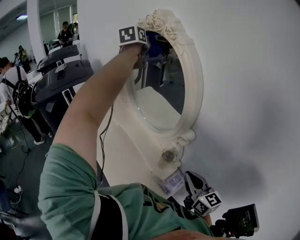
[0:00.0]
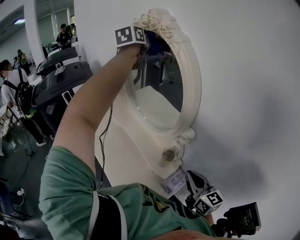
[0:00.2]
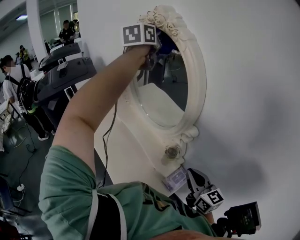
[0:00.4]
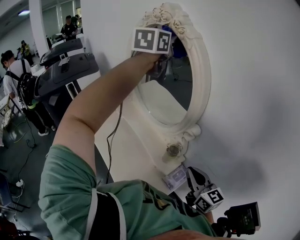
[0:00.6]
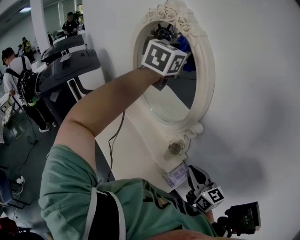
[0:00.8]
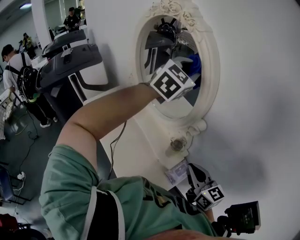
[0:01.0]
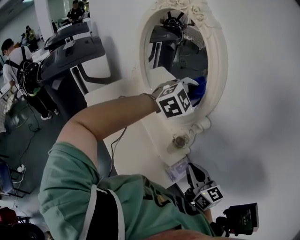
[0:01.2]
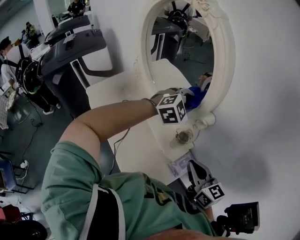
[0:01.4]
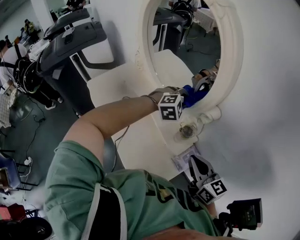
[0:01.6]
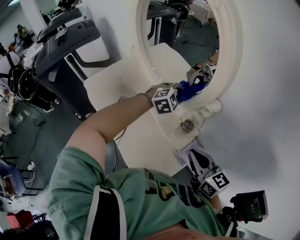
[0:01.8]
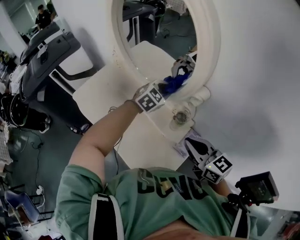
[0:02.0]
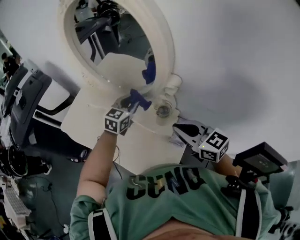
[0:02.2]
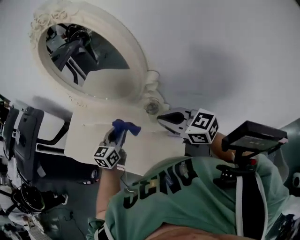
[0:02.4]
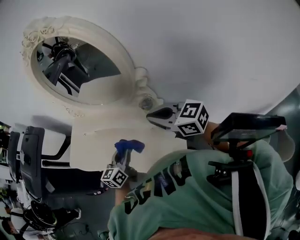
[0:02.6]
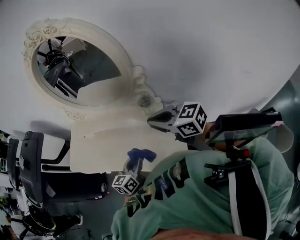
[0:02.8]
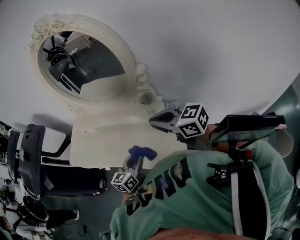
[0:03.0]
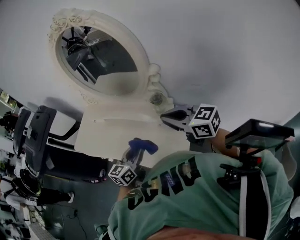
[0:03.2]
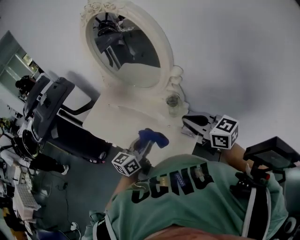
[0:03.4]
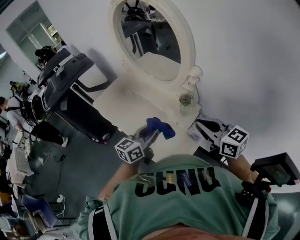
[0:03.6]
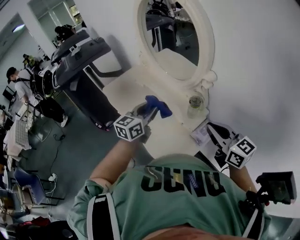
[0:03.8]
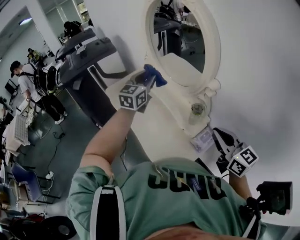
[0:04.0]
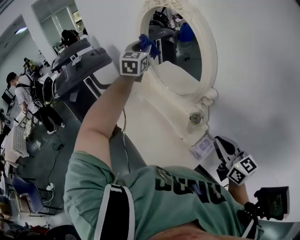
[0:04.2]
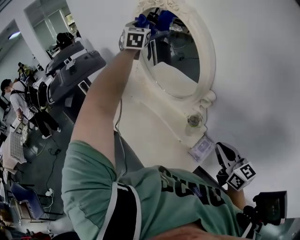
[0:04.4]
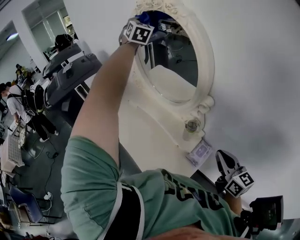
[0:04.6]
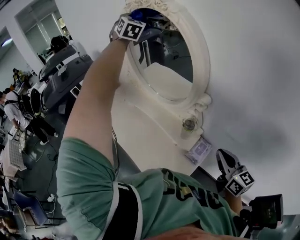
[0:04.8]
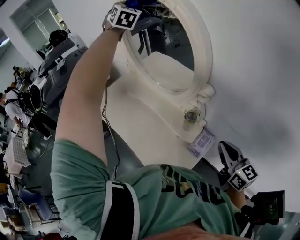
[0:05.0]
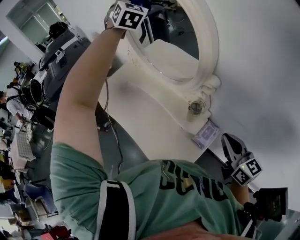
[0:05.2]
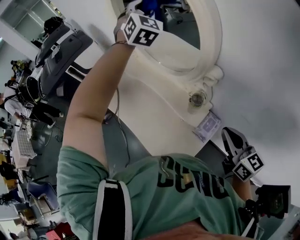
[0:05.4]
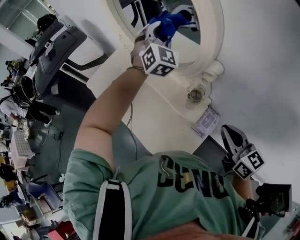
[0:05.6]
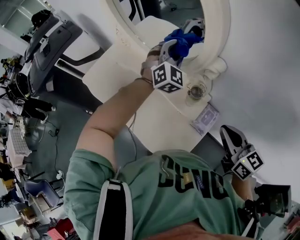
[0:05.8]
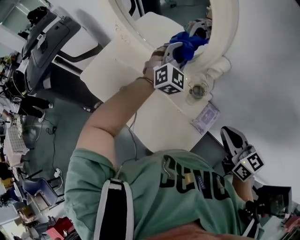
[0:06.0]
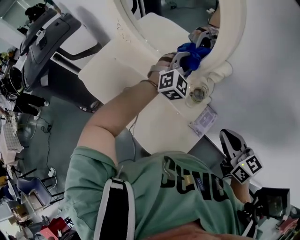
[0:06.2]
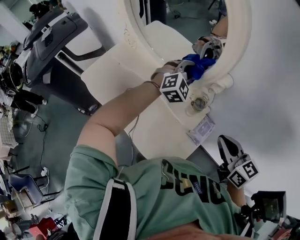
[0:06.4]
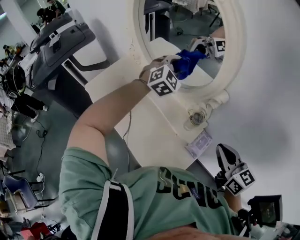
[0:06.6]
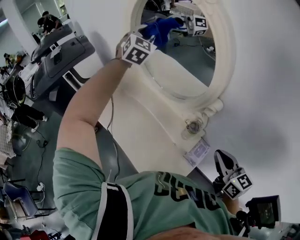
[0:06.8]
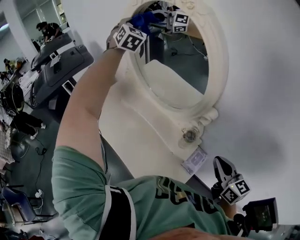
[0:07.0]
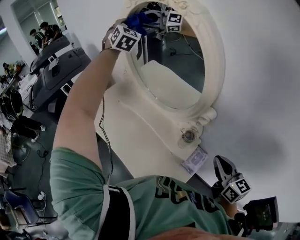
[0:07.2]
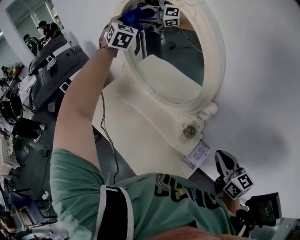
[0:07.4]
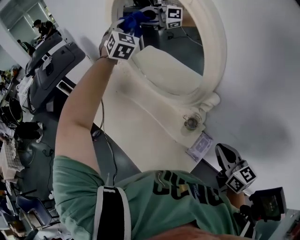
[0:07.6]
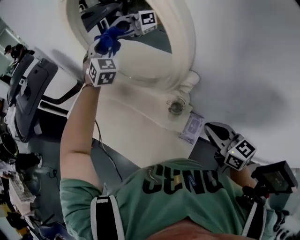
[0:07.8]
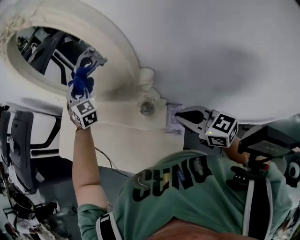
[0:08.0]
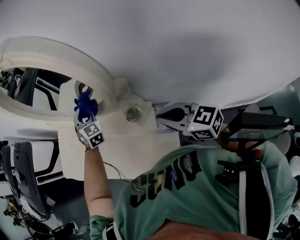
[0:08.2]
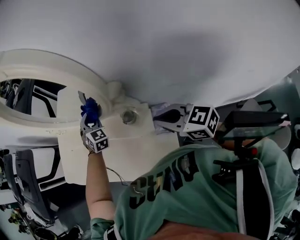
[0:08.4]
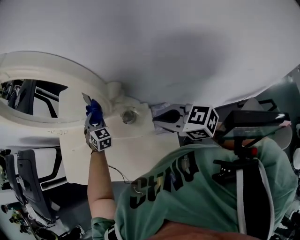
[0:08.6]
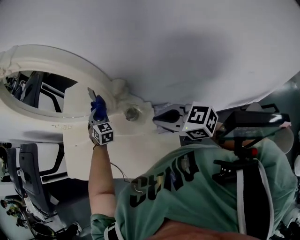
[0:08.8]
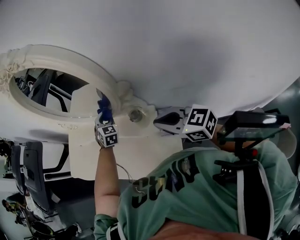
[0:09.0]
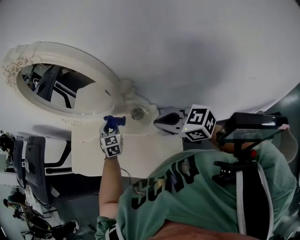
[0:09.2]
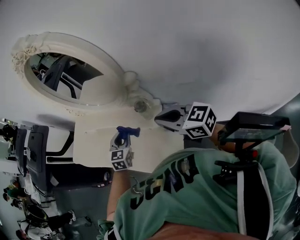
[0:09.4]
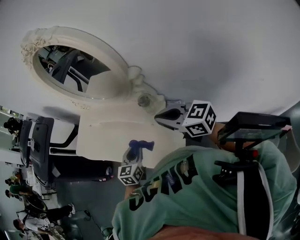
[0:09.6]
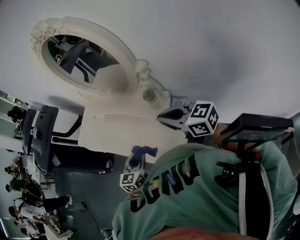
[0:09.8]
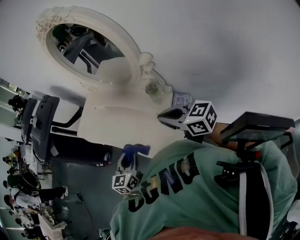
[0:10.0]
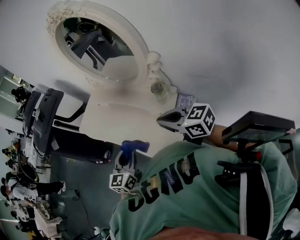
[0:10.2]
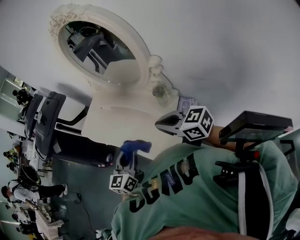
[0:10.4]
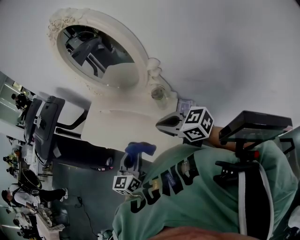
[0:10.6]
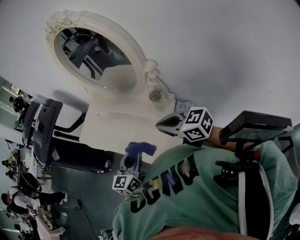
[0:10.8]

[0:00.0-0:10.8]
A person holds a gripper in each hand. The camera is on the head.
0:00.0 to 0:01.6: The left gripper moves downward, backward and to the right, roughly 50 cm, and rotates around the line of its fingers by about 70 degrees, clockwise from behind, while the right gripper moves about 5 cm.
0:01.6 to 0:03.0: The right gripper travels to the left, backward and upward by roughly 15 cm. The left gripper moves backward and to the left, about 35 cm, and rotates around the line of its fingers by some 60 degrees, counterclockwise from behind.
0:03.0 to 0:04.6: The left gripper shifts by about 60 cm, and turns by roughly 80 degrees; the right gripper ends up approximately 15 cm from where it was.
0:04.6 to 0:06.2: The right gripper goes roughly 5 cm downward. The left gripper shifts some 50 cm downward, backward and to the right, and swivels some 40 degrees.
0:06.2 to 0:07.8: The left gripper heads forward, to the left and upward, covering roughly 30 cm, and changes its angle by about 30 degrees.
0:07.8 to 0:09.2: The left gripper goes about 30 cm downward and backward, and turns by approximately 30 degrees; the right gripper is displaced to the left by some 5 cm.
0:09.2 to 0:10.8: The right gripper moves to the left, approximately 10 cm. Meanwhile the left gripper shifts roughly 30 cm backward and to the left, and changes its angle by about 40 degrees.

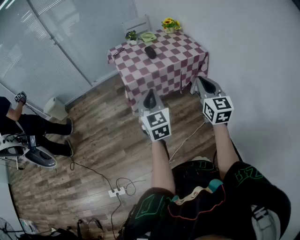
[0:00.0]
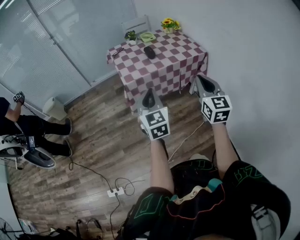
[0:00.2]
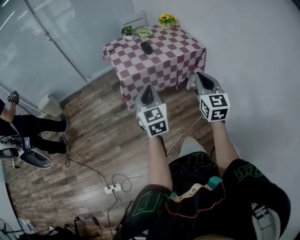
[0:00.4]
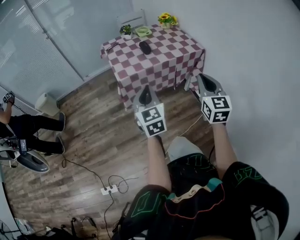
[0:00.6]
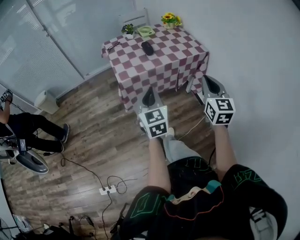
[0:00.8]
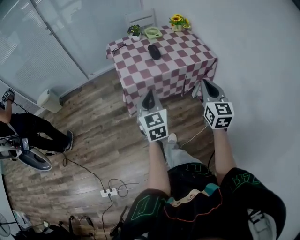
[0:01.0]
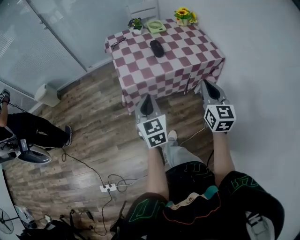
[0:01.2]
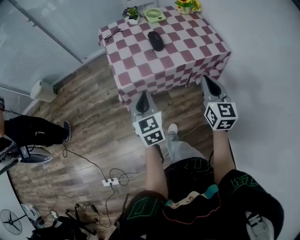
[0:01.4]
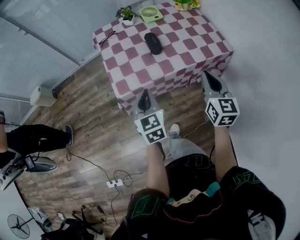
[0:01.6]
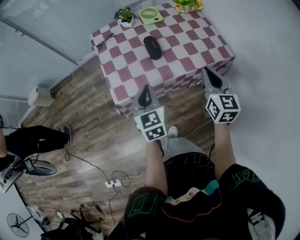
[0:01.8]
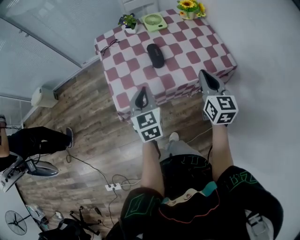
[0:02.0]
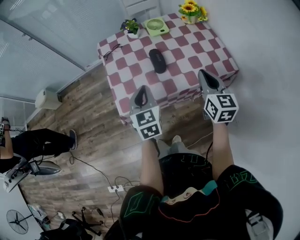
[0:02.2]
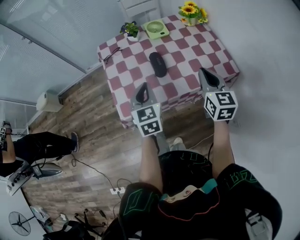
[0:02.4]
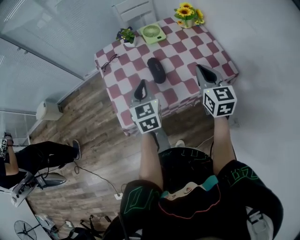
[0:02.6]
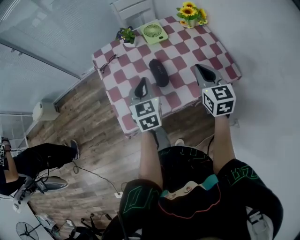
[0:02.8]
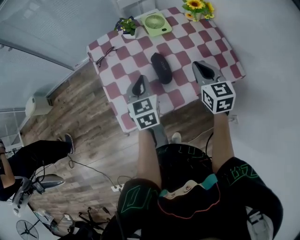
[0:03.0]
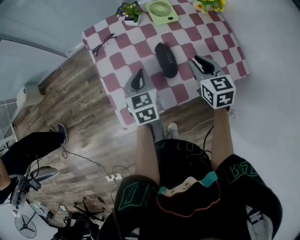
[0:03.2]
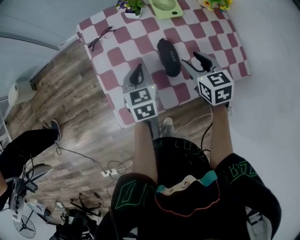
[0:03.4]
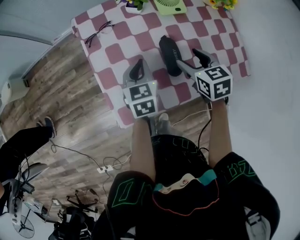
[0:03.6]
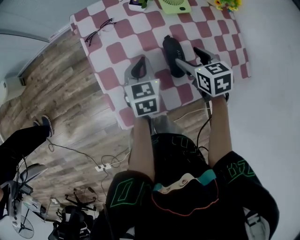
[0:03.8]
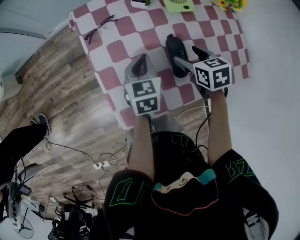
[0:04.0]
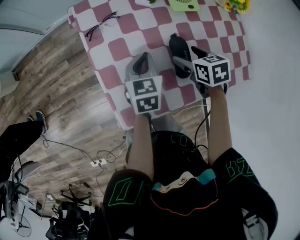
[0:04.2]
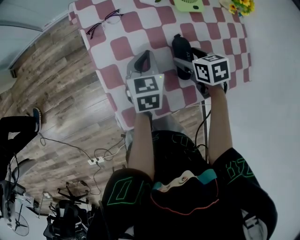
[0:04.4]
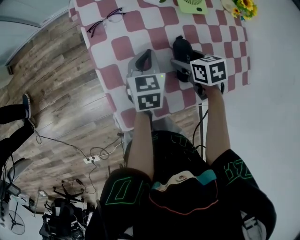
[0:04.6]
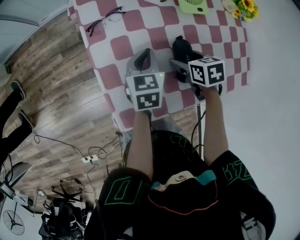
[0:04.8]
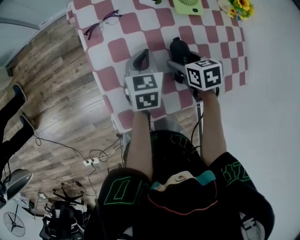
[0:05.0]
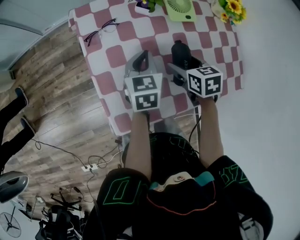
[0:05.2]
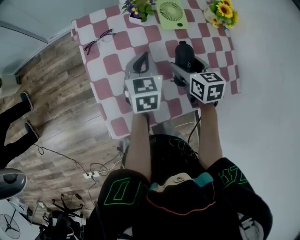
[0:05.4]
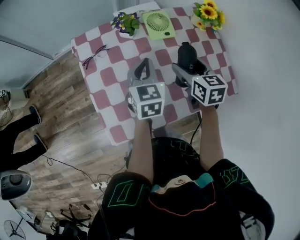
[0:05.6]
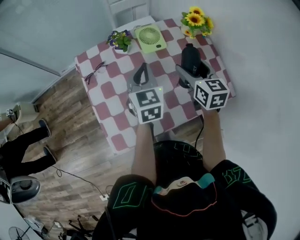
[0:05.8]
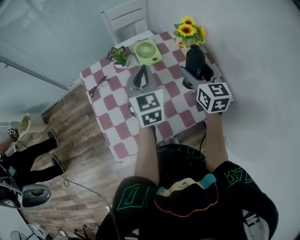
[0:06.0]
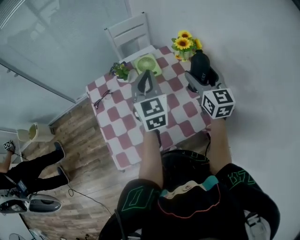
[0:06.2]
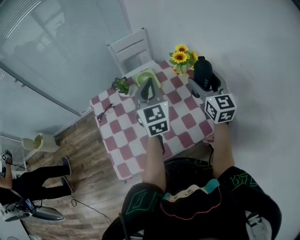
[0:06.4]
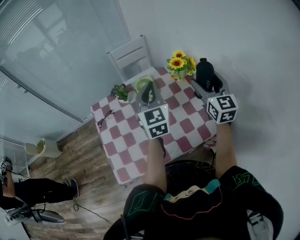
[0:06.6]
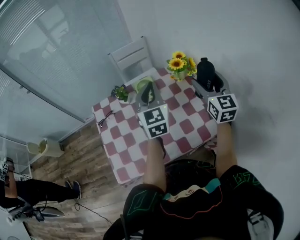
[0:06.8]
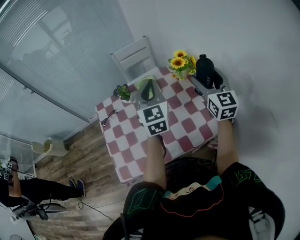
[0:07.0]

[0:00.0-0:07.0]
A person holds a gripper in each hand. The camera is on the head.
0:00.0 to 0:01.4: The right gripper shifts approximately 25 cm forward; the left gripper is displaced forward and downward by approximately 25 cm.
0:01.4 to 0:02.8: Both grippers travel together forward, about 30 cm.
0:02.8 to 0:04.2: The right gripper goes some 25 cm downward, forward and to the left, points its fingers some 40 degrees further downward, and opens up. The left gripper goes approximately 20 cm downward and forward, and changes its angle by some 20 degrees.
0:04.2 to 0:05.6: The grippers both shift upward and to the right by roughly 15 cm. The right gripper changes its angle by about 30 degrees.
0:05.6 to 0:07.0: The left gripper heads upward and to the right, covering approximately 25 cm, and rotates approximately 30 degrees. The right gripper is displaced to the right and upward by some 30 cm, and tips its fingers upward by roughly 40 degrees.

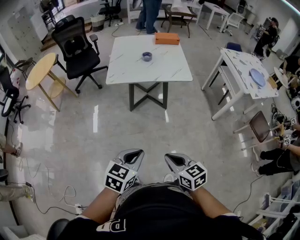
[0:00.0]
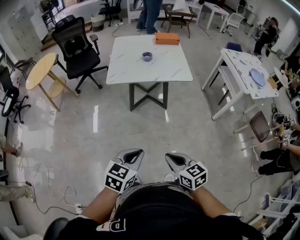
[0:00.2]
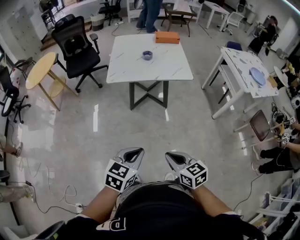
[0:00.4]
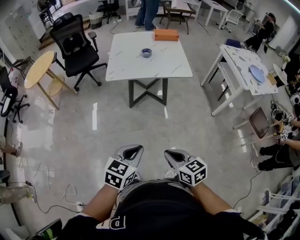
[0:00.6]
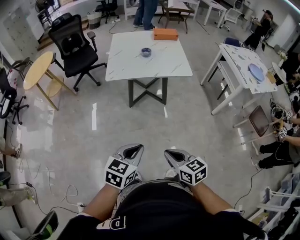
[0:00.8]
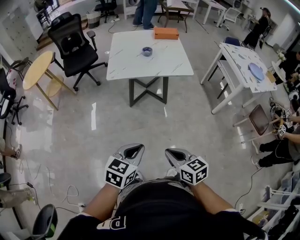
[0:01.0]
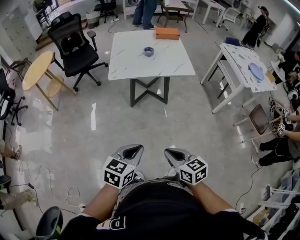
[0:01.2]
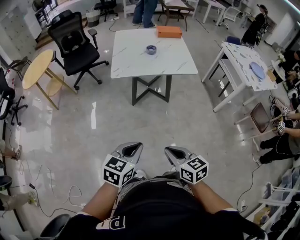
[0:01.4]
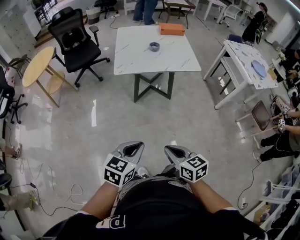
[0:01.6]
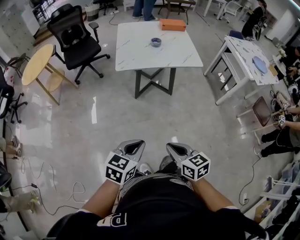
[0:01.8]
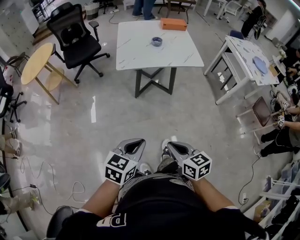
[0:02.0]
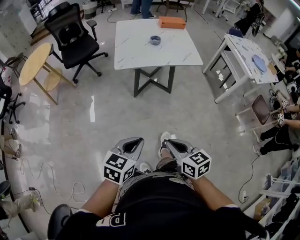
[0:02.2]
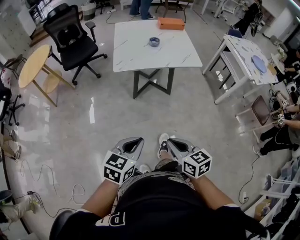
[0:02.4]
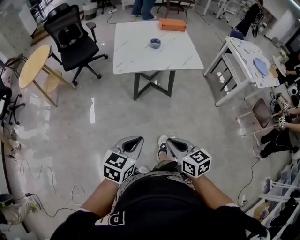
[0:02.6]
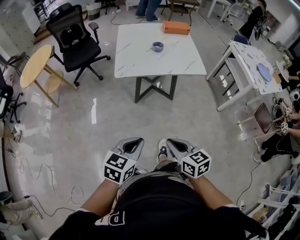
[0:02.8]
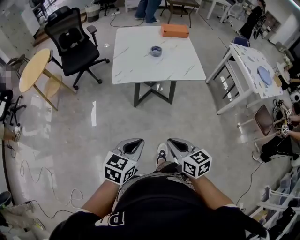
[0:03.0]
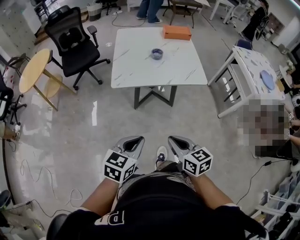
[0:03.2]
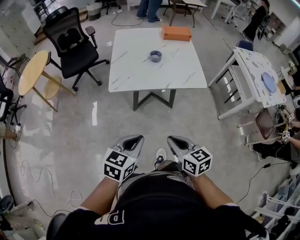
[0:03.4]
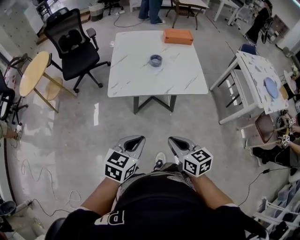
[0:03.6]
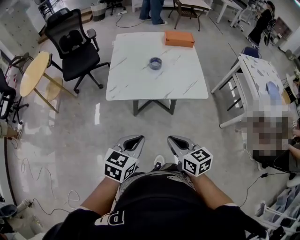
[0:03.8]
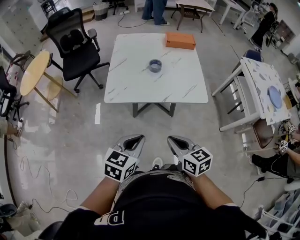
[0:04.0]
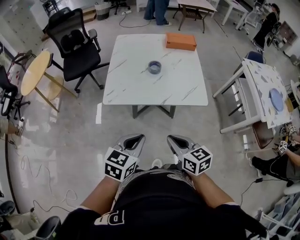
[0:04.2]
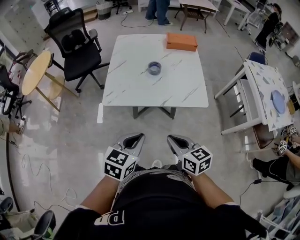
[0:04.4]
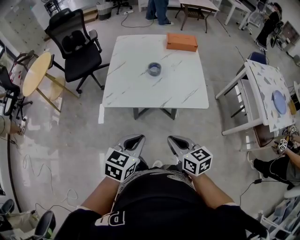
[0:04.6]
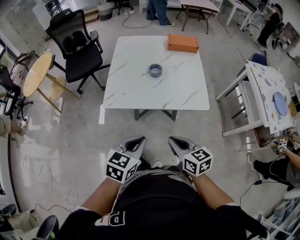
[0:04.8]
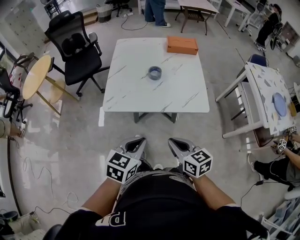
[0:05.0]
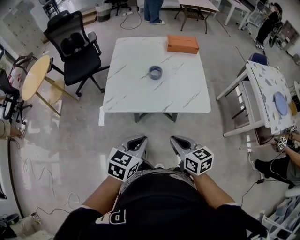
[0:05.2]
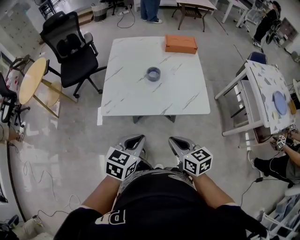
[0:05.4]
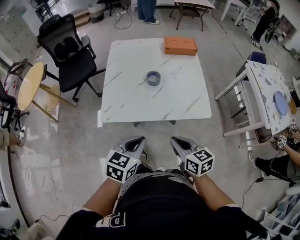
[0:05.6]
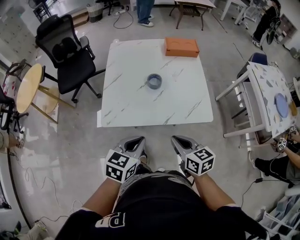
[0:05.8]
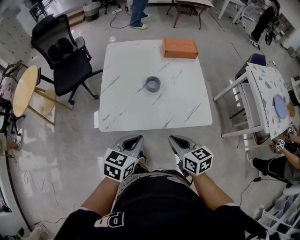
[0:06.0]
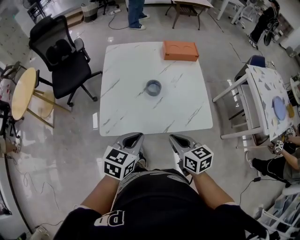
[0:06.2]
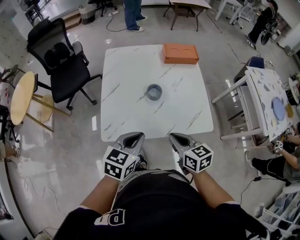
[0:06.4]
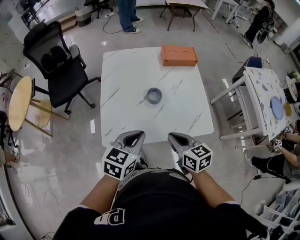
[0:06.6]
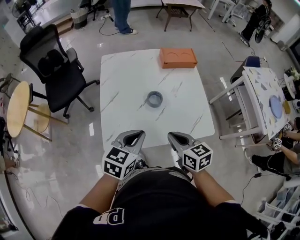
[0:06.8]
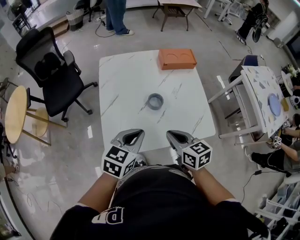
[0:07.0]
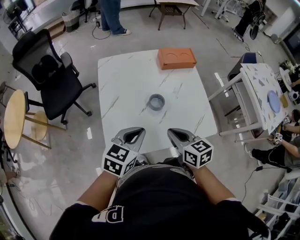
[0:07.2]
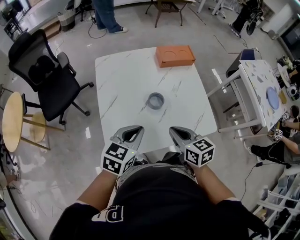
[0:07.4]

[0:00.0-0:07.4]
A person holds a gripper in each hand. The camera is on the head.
0:00.0 to 0:01.4: The two grippers go some 10 cm to the left.
0:01.4 to 0:03.0: The grippers both shift forward by about 10 cm.
0:03.0 to 0:04.4: Both grippers move forward and to the right, about 25 cm.
0:04.4 to 0:06.0: The grippers both shift forward by roughly 15 cm.
0:06.0 to 0:07.4: The two grippers go approximately 15 cm forward and to the left.
